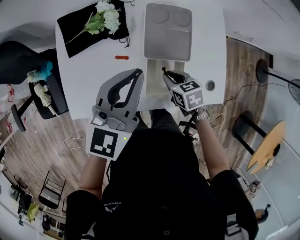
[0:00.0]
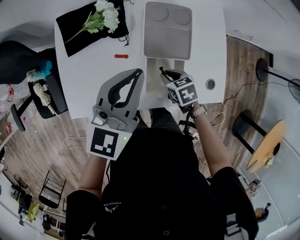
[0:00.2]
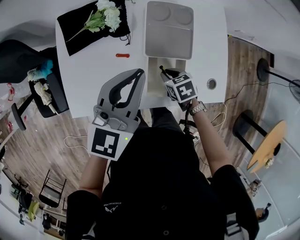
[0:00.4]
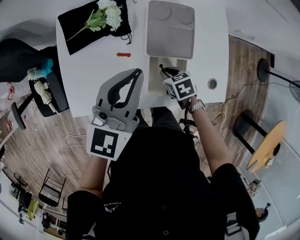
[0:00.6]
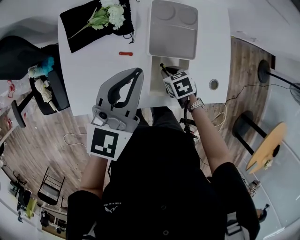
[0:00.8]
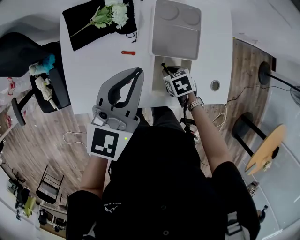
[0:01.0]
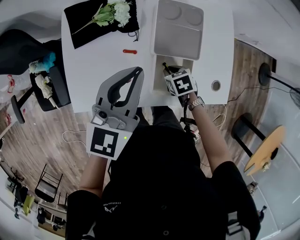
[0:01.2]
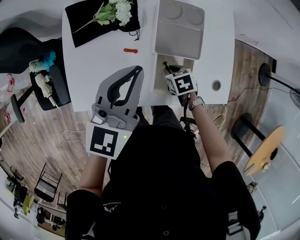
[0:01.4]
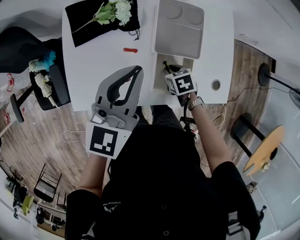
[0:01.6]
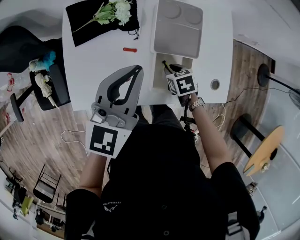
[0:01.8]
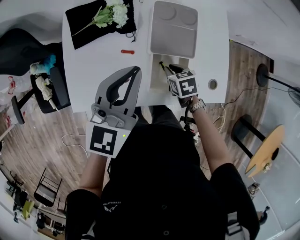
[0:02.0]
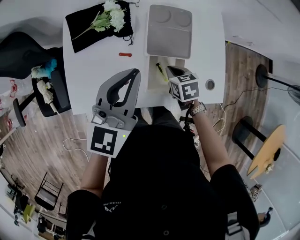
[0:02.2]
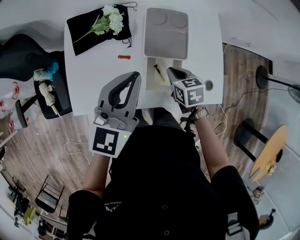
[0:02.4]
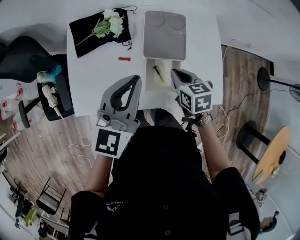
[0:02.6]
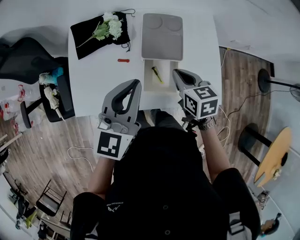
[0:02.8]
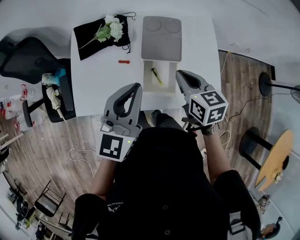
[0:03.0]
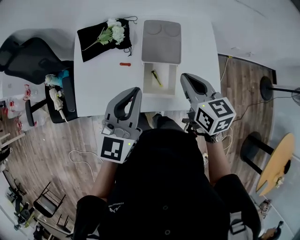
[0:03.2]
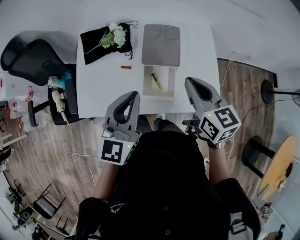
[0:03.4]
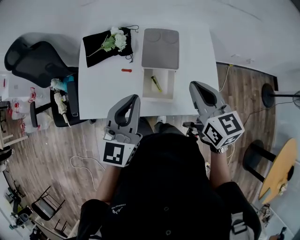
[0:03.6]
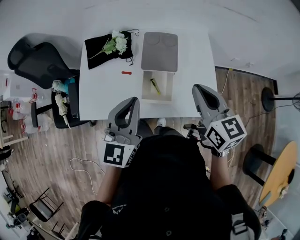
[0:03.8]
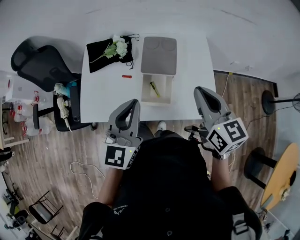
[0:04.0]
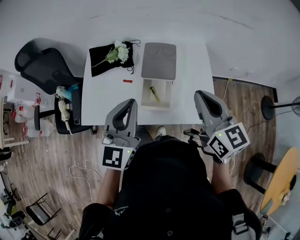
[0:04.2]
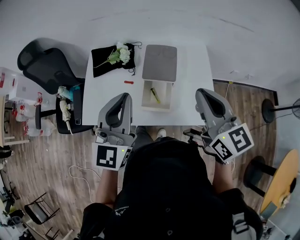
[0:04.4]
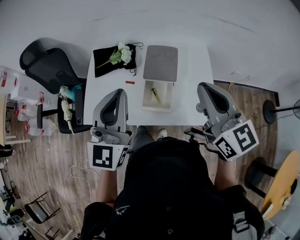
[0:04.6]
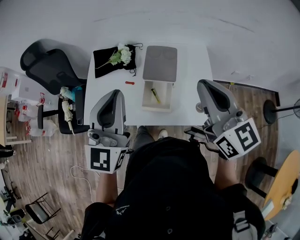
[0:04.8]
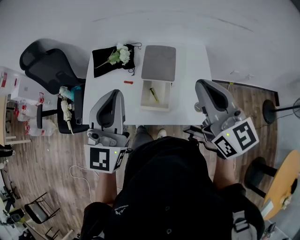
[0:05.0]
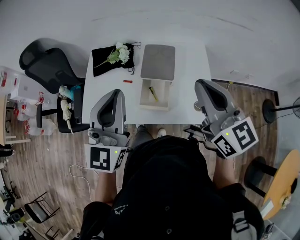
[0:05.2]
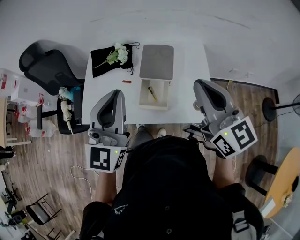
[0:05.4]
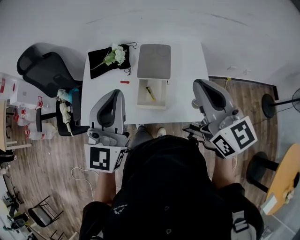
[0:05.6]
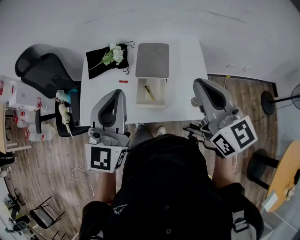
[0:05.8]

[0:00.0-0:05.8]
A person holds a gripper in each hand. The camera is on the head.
0:00.0 to 0:01.4: The right gripper is displaced downward by some 5 cm.
0:01.4 to 0:02.8: The right gripper shifts approximately 20 cm upward, and tips its fingers upward by some 30 degrees; the left gripper is displaced backward by approximately 10 cm.
0:02.8 to 0:04.4: The left gripper shifts some 10 cm upward and backward, and swivels roughly 20 degrees. The right gripper is displaced upward and backward by approximately 25 cm, and tips its fingers upward by some 30 degrees.
0:04.4 to 0:05.8: The grippers move only a little.

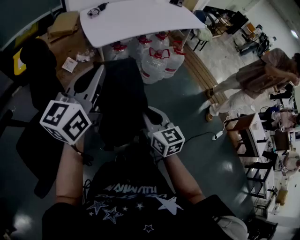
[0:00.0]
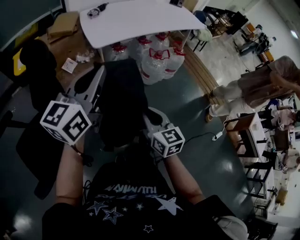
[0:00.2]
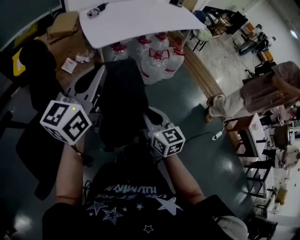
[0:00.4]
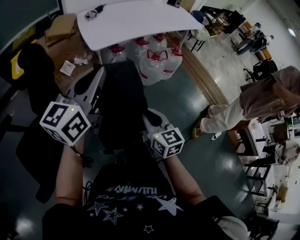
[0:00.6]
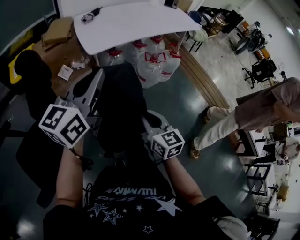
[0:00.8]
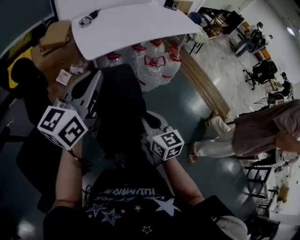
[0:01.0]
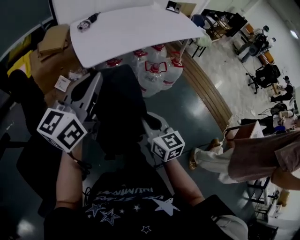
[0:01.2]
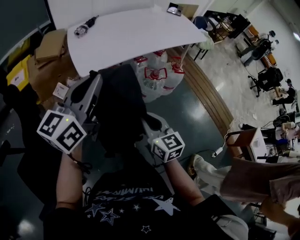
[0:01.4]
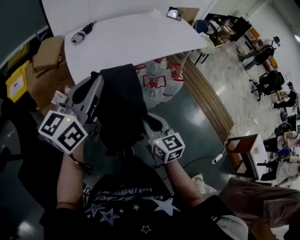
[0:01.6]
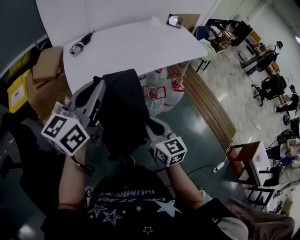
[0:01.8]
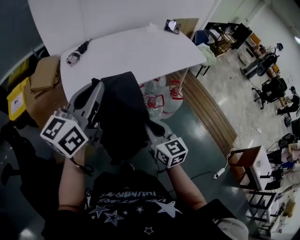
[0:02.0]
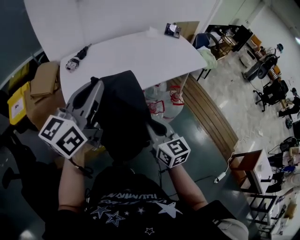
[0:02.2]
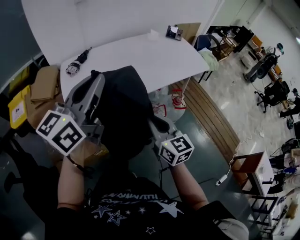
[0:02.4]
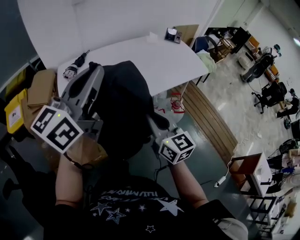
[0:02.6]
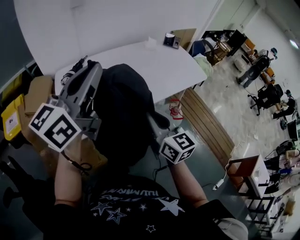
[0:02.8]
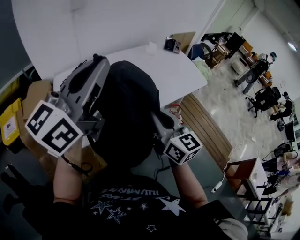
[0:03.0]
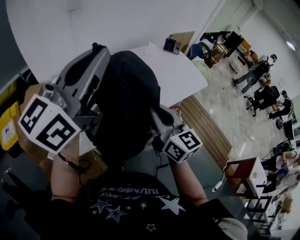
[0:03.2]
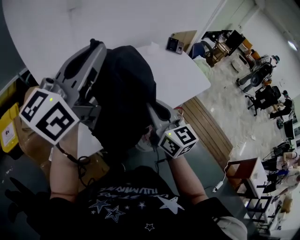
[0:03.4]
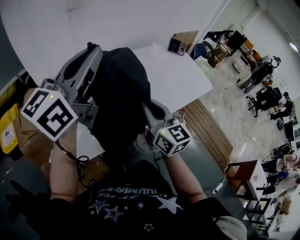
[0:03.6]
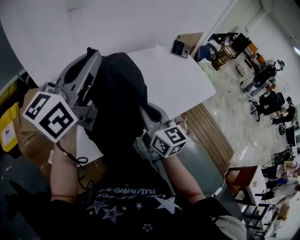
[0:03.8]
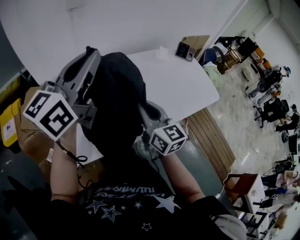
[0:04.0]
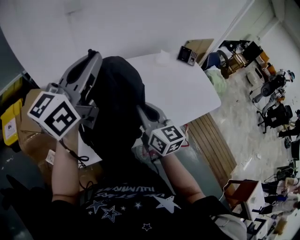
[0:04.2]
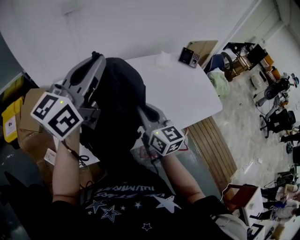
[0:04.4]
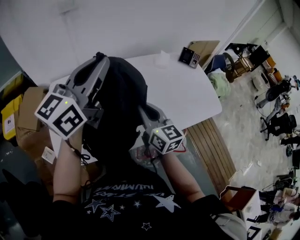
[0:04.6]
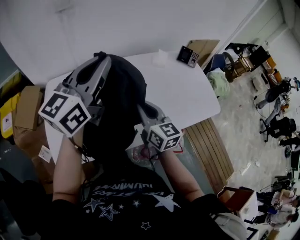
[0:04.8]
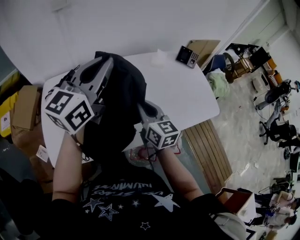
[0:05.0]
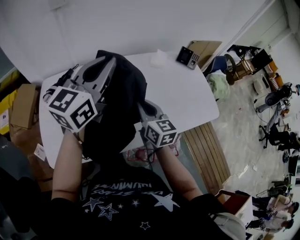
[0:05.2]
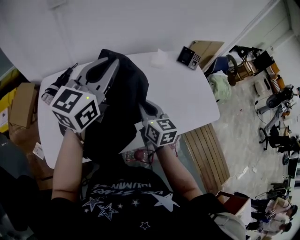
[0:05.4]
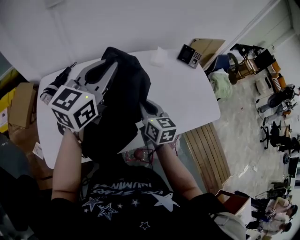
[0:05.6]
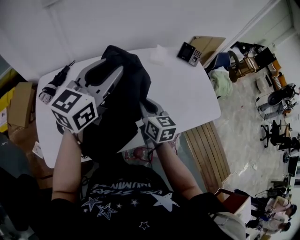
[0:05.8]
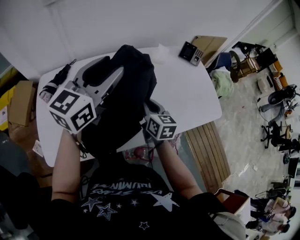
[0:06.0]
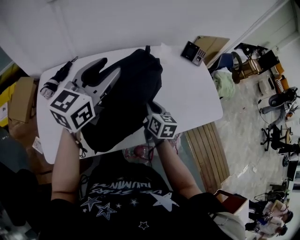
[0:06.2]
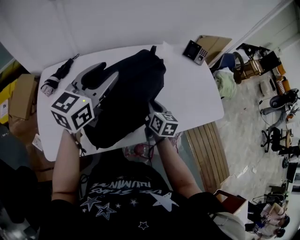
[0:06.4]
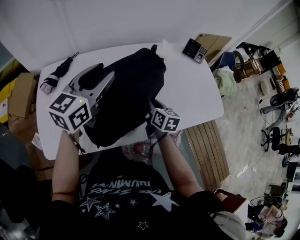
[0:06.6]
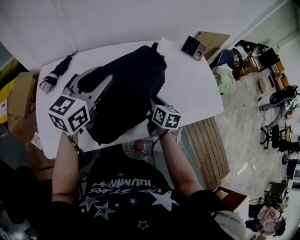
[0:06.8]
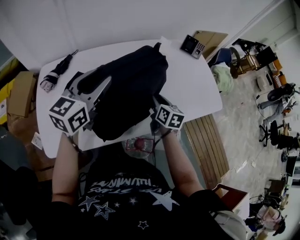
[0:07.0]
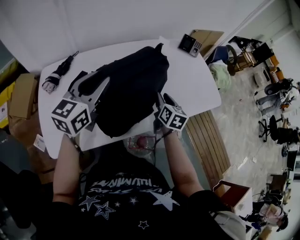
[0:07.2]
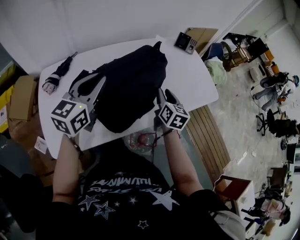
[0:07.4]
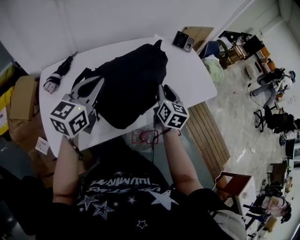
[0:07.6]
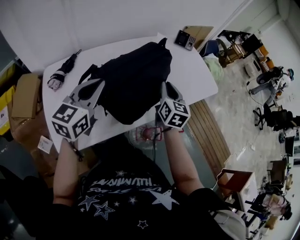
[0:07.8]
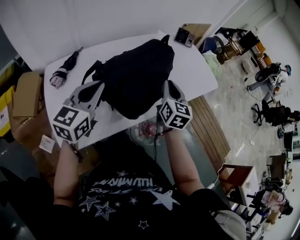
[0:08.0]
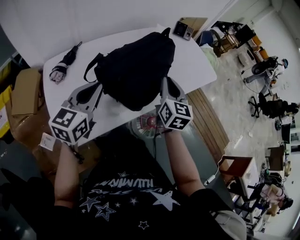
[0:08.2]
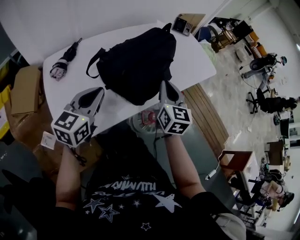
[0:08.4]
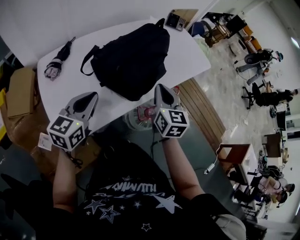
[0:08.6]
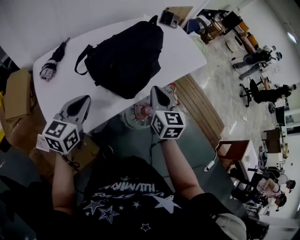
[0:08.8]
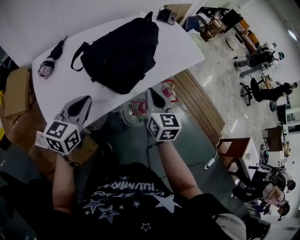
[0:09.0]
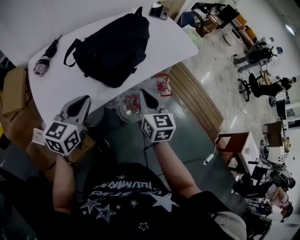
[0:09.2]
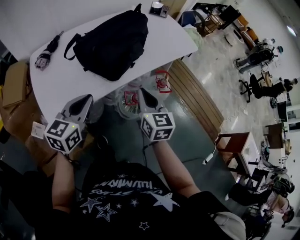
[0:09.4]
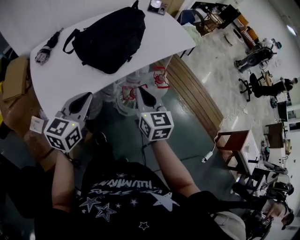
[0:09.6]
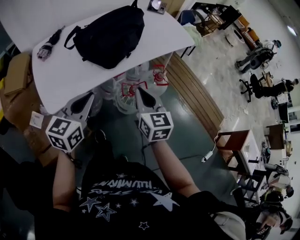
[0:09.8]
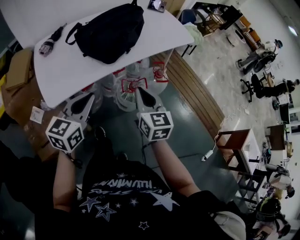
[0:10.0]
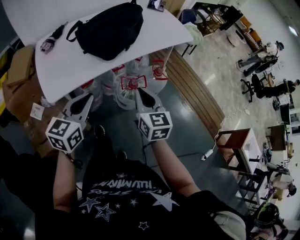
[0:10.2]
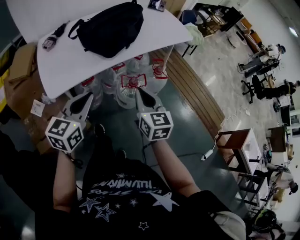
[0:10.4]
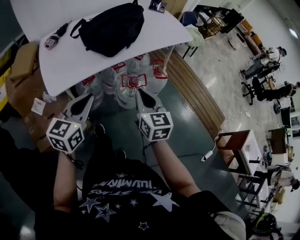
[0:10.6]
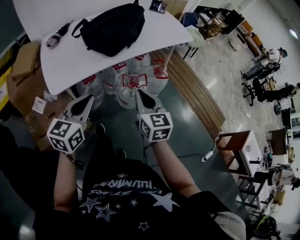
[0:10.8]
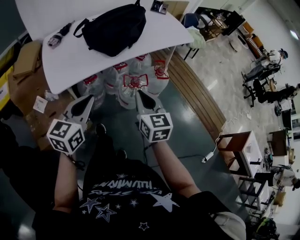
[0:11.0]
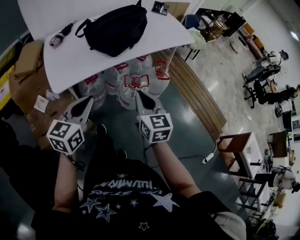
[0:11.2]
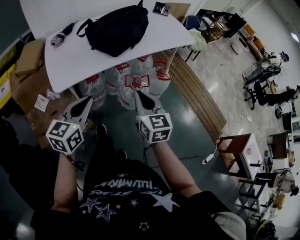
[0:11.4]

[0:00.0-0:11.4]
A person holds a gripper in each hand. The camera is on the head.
0:00.0 to 0:01.4: The two grippers go approximately 20 cm forward.
0:01.4 to 0:02.8: The two grippers go about 35 cm forward.
0:02.8 to 0:04.2: Both grippers travel together forward, approximately 25 cm.
0:04.2 to 0:05.6: The right gripper travels to the right, forward and downward by about 20 cm. Meanwhile the left gripper goes roughly 20 cm to the right, downward and forward.
0:05.6 to 0:07.2: The right gripper travels to the right and downward by some 10 cm, swivels approximately 20 degrees, and opens up; the left gripper moves backward, downward and to the left, approximately 10 cm, and opens its fingers.
0:07.2 to 0:08.6: The left gripper shifts about 25 cm backward, to the left and downward, and closes up; the right gripper shifts some 25 cm backward and upward, rotates roughly 20 degrees, and closes its fingers.
0:08.6 to 0:10.0: The two grippers go about 25 cm backward and to the right.
0:10.0 to 0:11.4: The two grippers go some 10 cm backward.

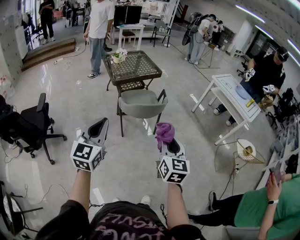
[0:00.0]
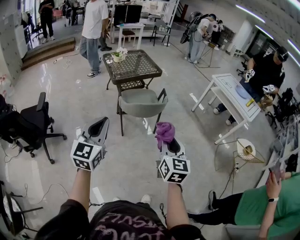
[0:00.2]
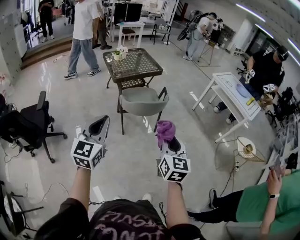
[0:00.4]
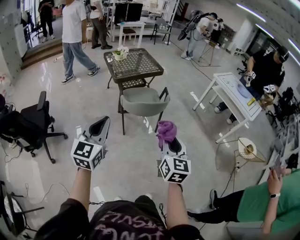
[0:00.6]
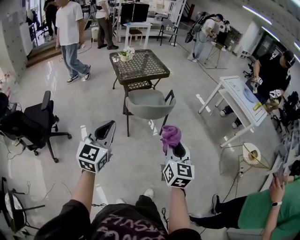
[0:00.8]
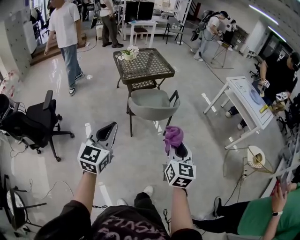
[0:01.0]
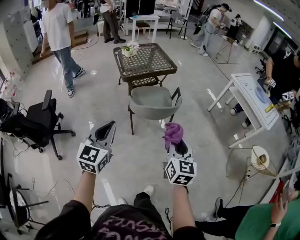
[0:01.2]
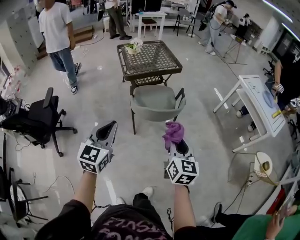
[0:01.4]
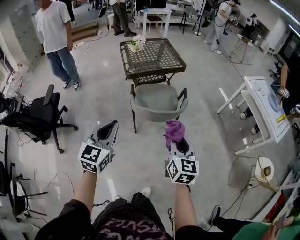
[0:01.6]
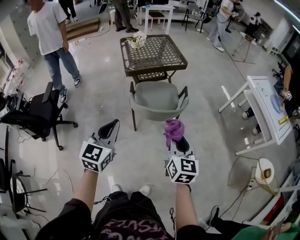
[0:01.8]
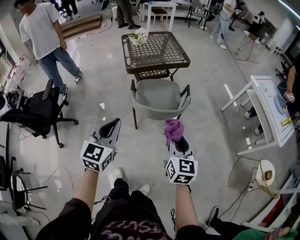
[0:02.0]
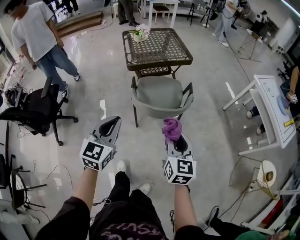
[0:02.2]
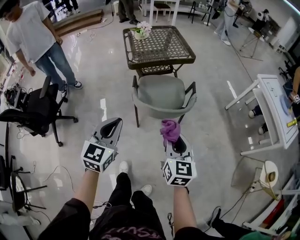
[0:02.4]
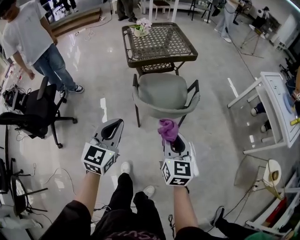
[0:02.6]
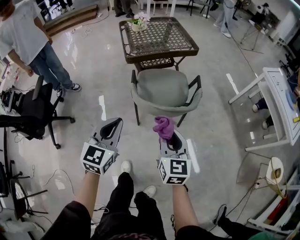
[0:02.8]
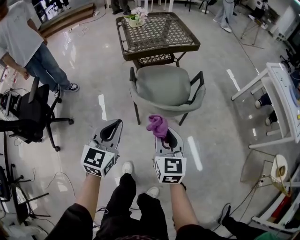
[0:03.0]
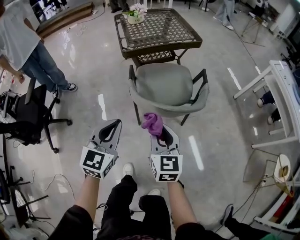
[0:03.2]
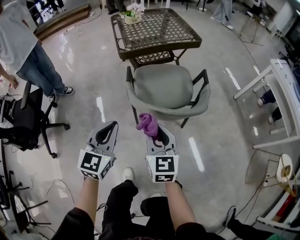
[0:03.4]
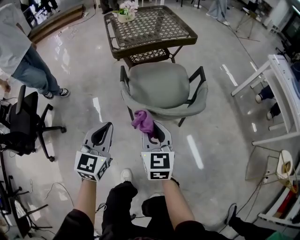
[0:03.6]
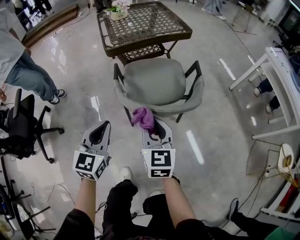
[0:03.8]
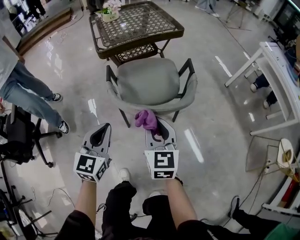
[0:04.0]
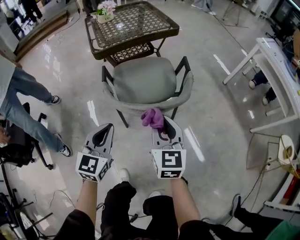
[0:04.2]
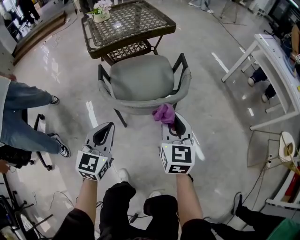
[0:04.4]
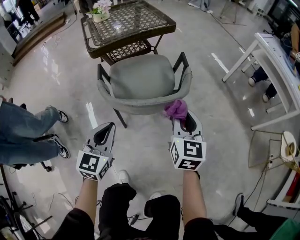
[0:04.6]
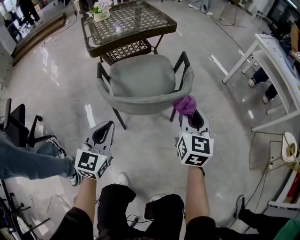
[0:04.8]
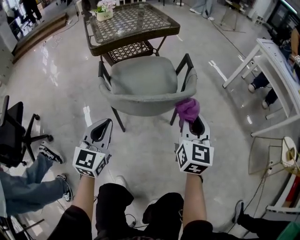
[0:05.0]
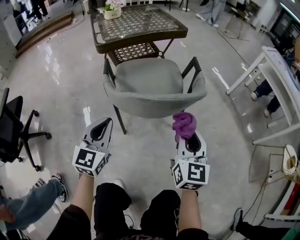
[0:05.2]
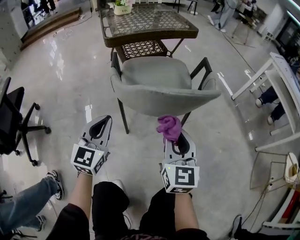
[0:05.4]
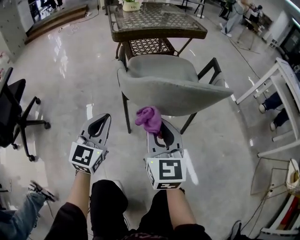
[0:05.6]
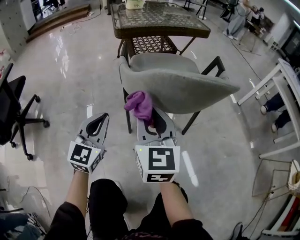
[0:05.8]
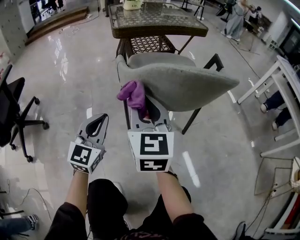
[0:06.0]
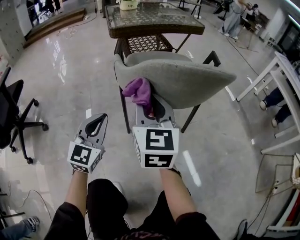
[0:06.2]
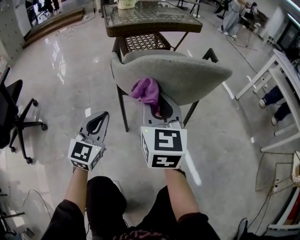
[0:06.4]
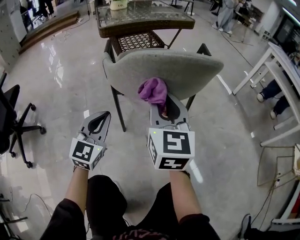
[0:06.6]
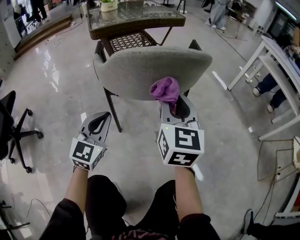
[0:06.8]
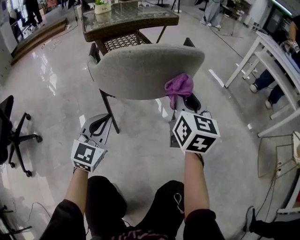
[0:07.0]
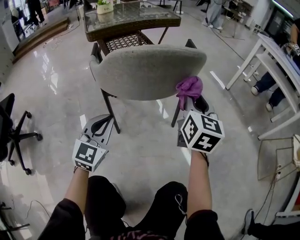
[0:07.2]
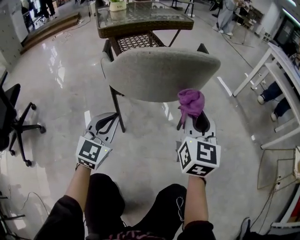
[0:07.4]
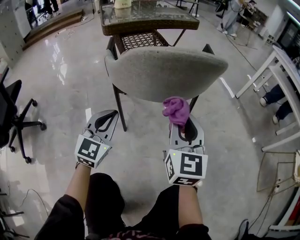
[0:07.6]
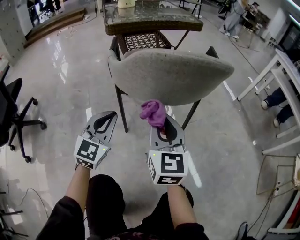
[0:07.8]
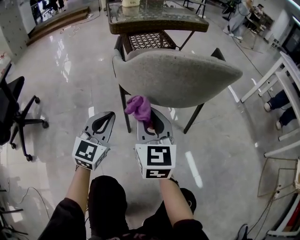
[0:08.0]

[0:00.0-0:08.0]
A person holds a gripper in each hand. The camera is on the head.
0:00.0 to 0:01.6: The left gripper moves forward and downward, about 20 cm. The right gripper heads forward, covering some 20 cm.
0:01.6 to 0:03.2: The left gripper shifts some 25 cm downward and forward; the right gripper shifts roughly 30 cm downward, forward and to the left.
0:03.2 to 0:04.8: The right gripper travels to the right and forward by about 20 cm, and changes its angle by about 20 degrees. The left gripper is displaced downward, to the right and forward by about 15 cm.
0:04.8 to 0:06.4: The right gripper travels to the left by roughly 20 cm, and turns by about 20 degrees, while the left gripper heads downward and to the left, covering roughly 20 cm.
0:06.4 to 0:08.0: The right gripper travels downward by roughly 5 cm, and moves some 20 cm to the right and comes back; the left gripper moves about 10 cm to the right and comes back.
